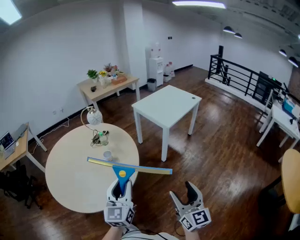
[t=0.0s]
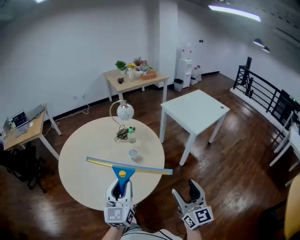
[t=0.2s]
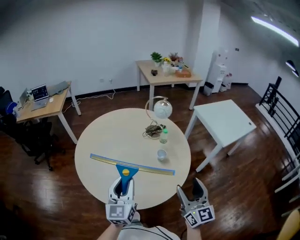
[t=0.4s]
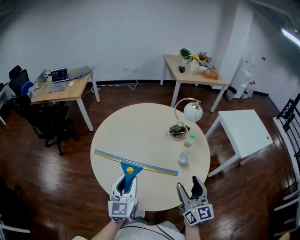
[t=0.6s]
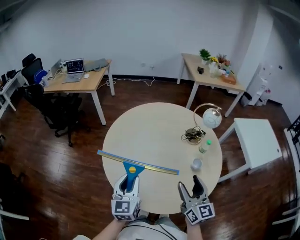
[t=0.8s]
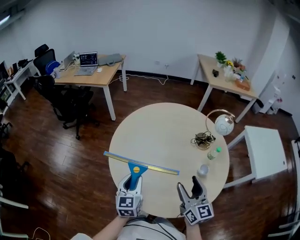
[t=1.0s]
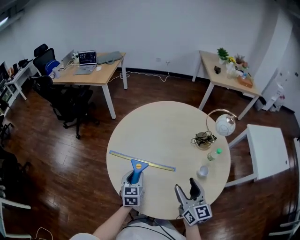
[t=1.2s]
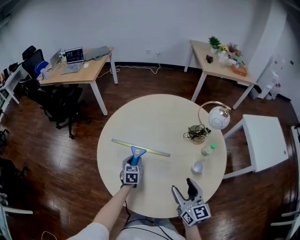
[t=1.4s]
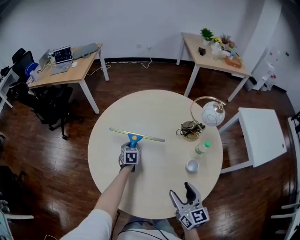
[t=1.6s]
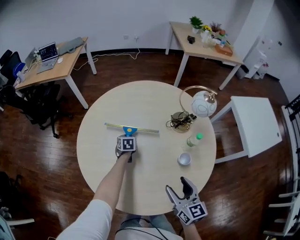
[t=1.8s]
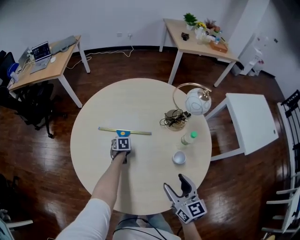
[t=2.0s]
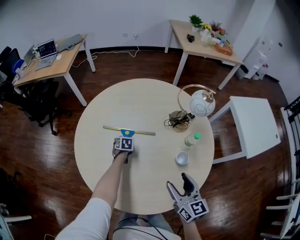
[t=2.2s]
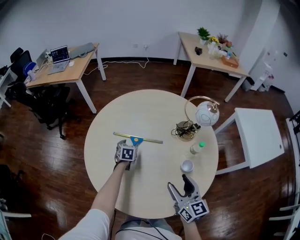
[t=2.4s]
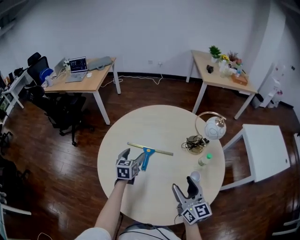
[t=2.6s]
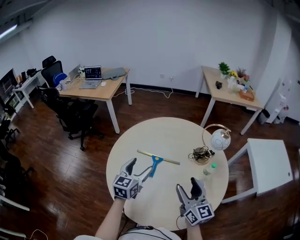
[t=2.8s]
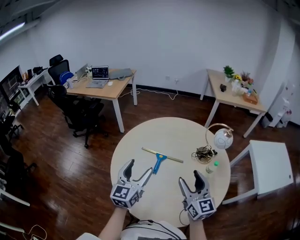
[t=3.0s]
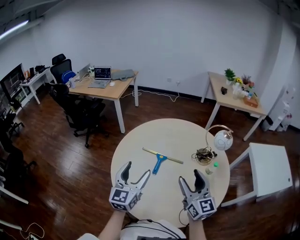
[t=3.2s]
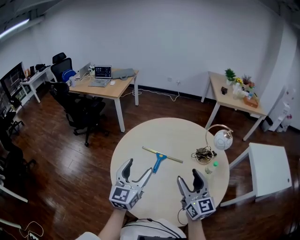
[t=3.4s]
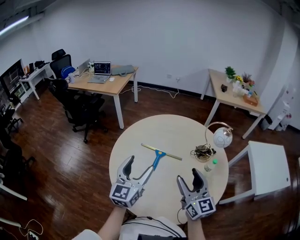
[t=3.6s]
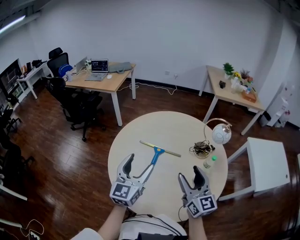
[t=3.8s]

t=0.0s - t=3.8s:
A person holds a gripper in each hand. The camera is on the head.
t=0.0s - t=1.2s: The pair of grippers is taken some 60 cm. The right gripper rotates approximately 40 degrees; the left gripper angles its fingers downward, by about 30 degrees.
t=1.2s - t=2.6s: The left gripper heads forward, covering about 15 cm, moves roughly 25 cm downward and comes back, and opens up; the right gripper shifts roughly 5 cm to the right.
t=2.6s - t=3.8s: The right gripper heads upward, covering approximately 10 cm; the left gripper shifts some 25 cm upward and backward, and tips its fingers upward by about 30 degrees.

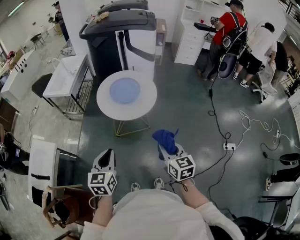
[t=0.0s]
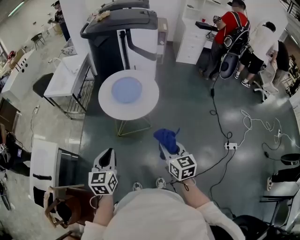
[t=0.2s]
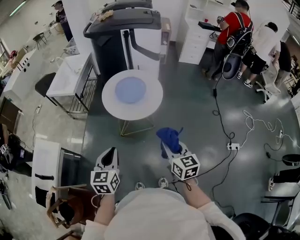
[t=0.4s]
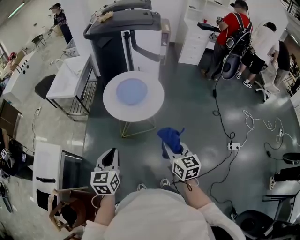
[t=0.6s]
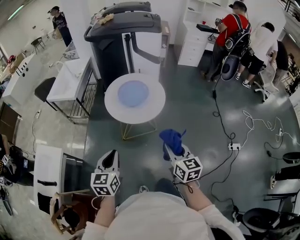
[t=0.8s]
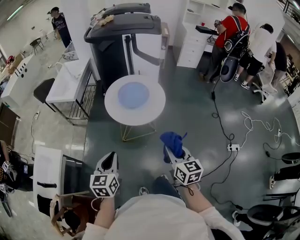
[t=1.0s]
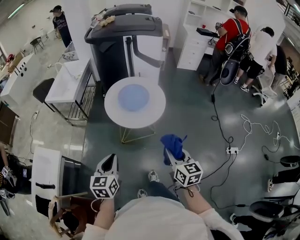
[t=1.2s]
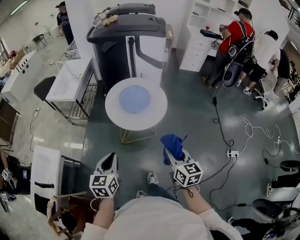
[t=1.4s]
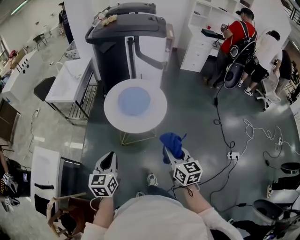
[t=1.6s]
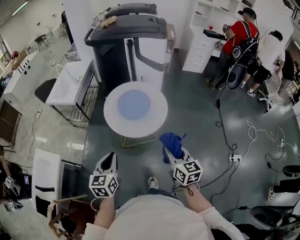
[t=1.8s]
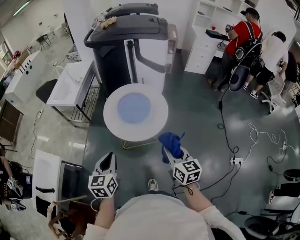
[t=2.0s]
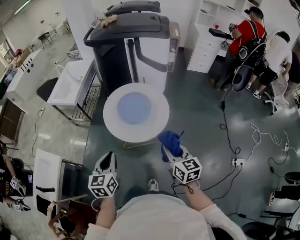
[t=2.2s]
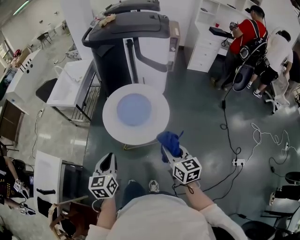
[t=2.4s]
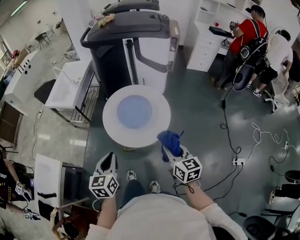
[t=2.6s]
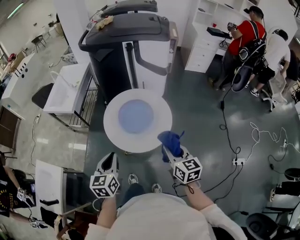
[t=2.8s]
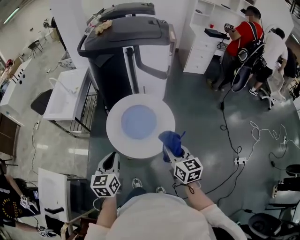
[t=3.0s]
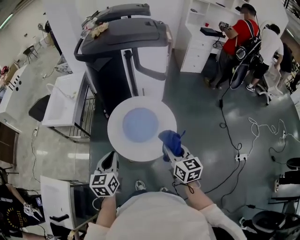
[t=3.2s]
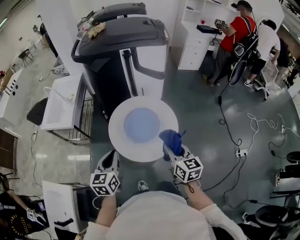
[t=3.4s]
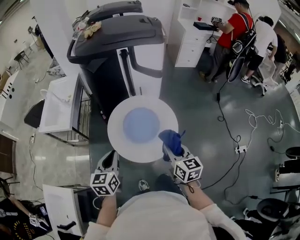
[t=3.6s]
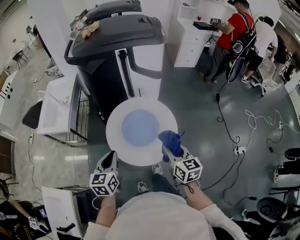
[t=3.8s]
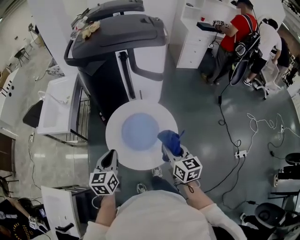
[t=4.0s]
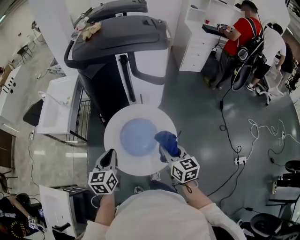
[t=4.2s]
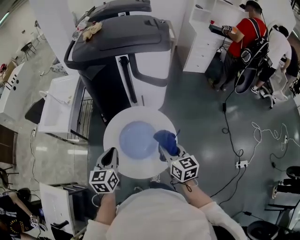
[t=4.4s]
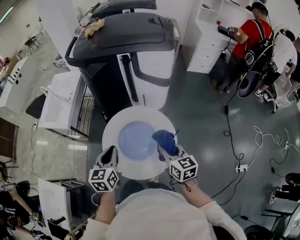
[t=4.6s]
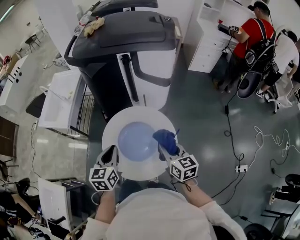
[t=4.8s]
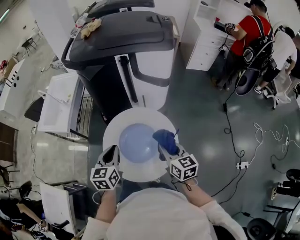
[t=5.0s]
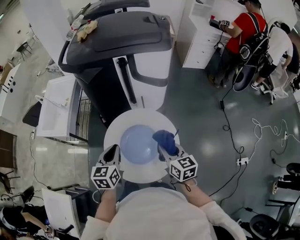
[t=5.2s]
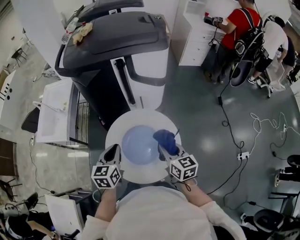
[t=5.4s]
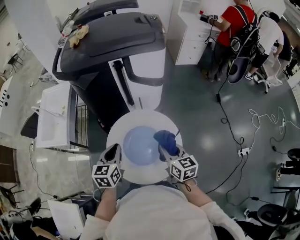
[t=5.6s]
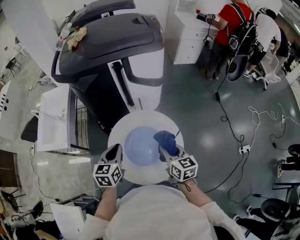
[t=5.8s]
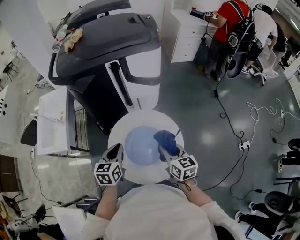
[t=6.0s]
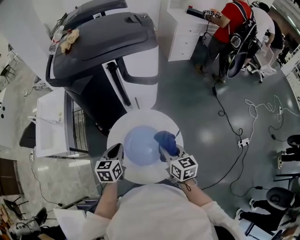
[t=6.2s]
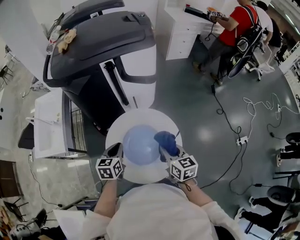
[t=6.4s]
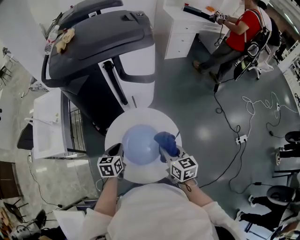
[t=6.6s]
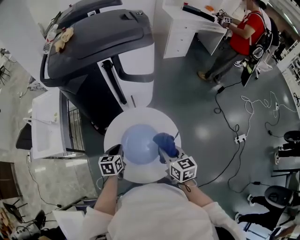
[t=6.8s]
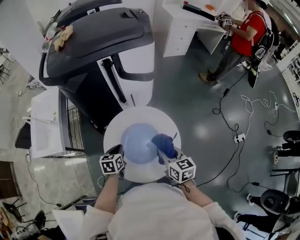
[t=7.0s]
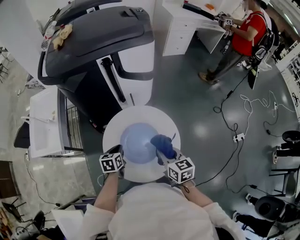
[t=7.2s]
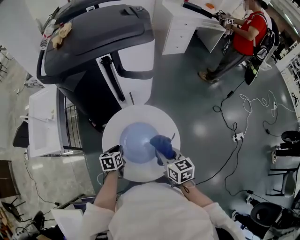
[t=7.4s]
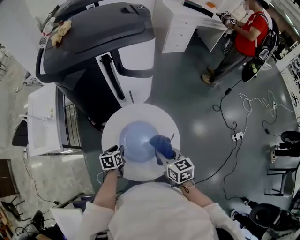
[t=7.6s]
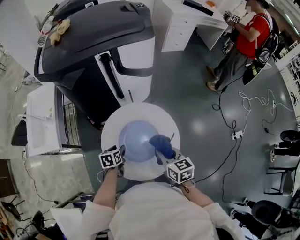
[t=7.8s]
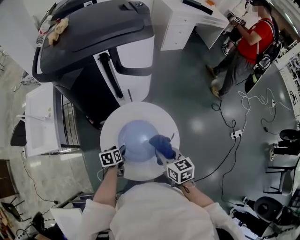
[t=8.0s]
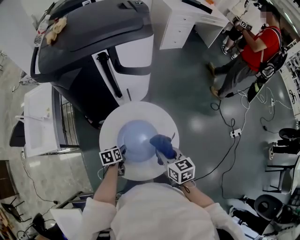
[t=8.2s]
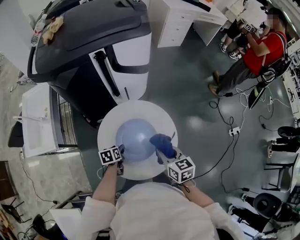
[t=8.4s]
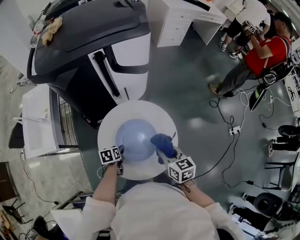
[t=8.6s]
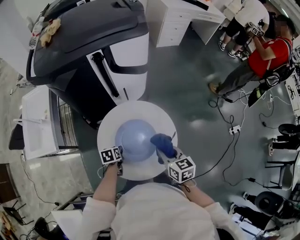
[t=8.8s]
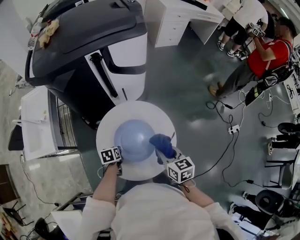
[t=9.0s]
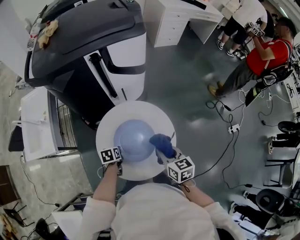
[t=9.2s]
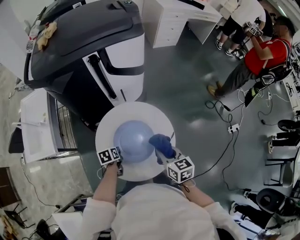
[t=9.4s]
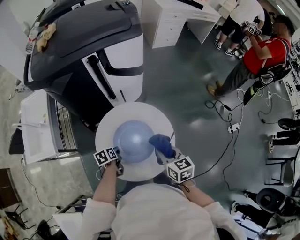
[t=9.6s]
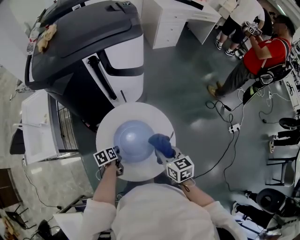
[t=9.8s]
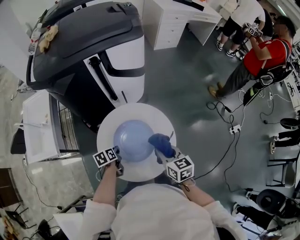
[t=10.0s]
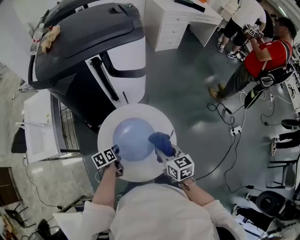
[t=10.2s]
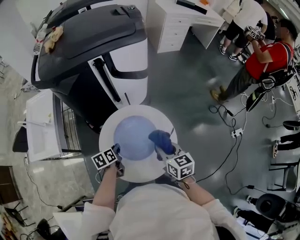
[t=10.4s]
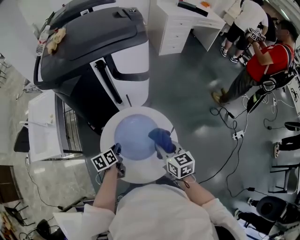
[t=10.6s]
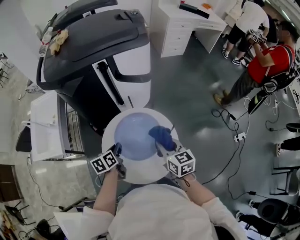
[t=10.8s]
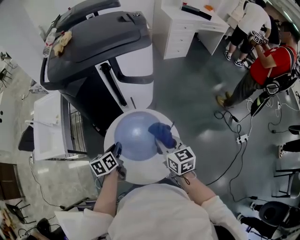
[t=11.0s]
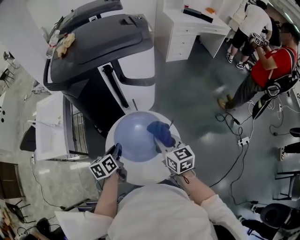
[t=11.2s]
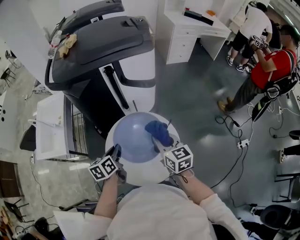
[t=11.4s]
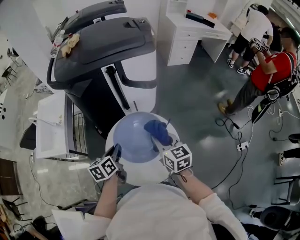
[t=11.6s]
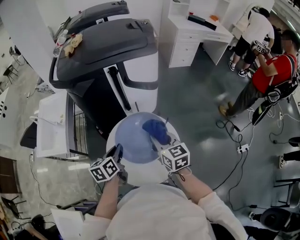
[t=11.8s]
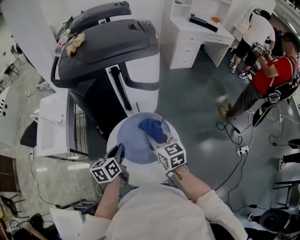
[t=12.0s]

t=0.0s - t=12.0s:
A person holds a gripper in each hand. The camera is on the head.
t=0.0s - t=1.6s: Both grippers travel together forward, some 10 cm.
t=1.6s - t=3.0s: Both grippers travel together forward, about 20 cm.
t=3.0s - t=4.4s: Both grippers travel together forward, about 15 cm.
t=4.4s - t=6.0s: The right gripper moves roughly 5 cm. The left gripper is displaced forward by some 10 cm.
t=6.0s - t=7.6s: The left gripper heads downward, covering some 20 cm, and swivels about 20 degrees.
t=7.6s - t=9.0s: The left gripper heads downward, covering about 5 cm.
t=9.0s - t=10.4s: The left gripper travels upward by about 10 cm, turns by roughly 20 degrees, and closes up.
t=10.4s - t=12.0s: The left gripper heads upward, covering roughly 20 cm, and swivels approximately 20 degrees; the right gripper shifts some 10 cm upward, forward and to the left.

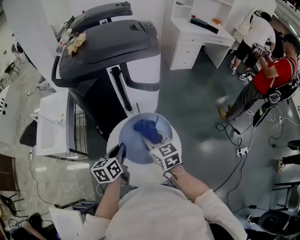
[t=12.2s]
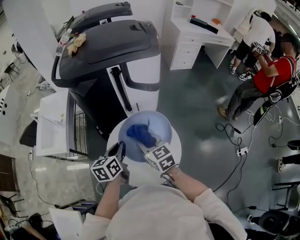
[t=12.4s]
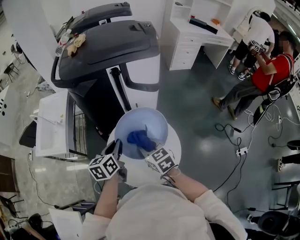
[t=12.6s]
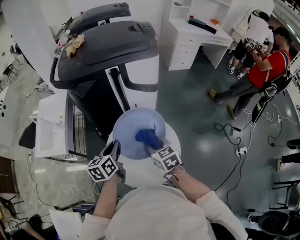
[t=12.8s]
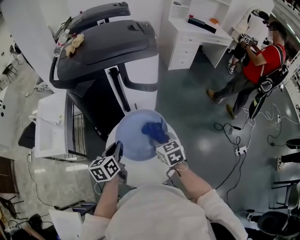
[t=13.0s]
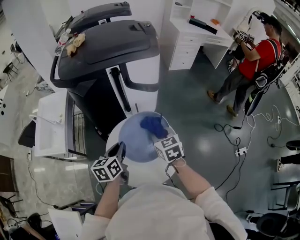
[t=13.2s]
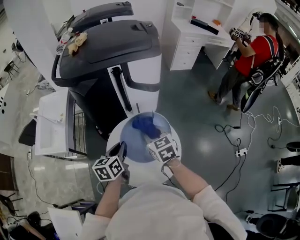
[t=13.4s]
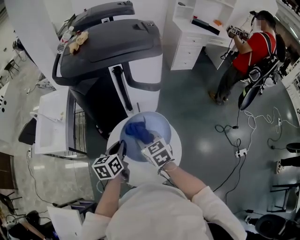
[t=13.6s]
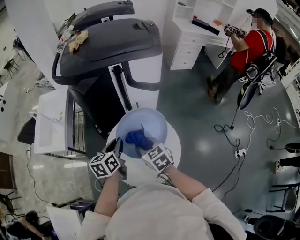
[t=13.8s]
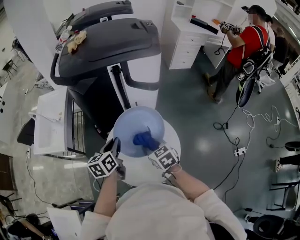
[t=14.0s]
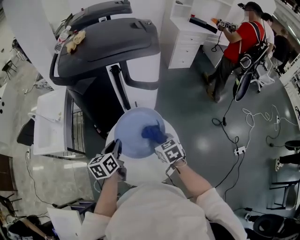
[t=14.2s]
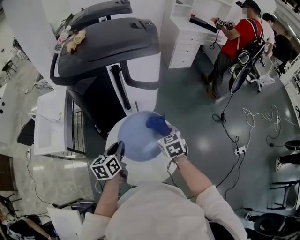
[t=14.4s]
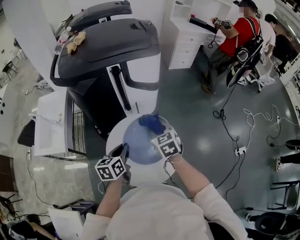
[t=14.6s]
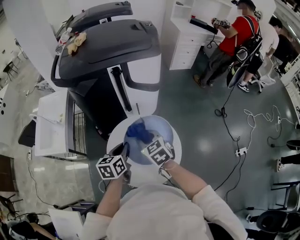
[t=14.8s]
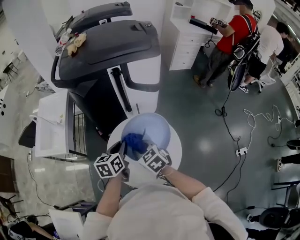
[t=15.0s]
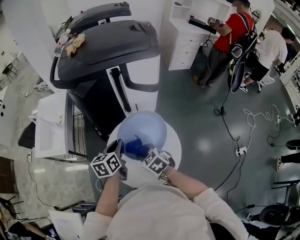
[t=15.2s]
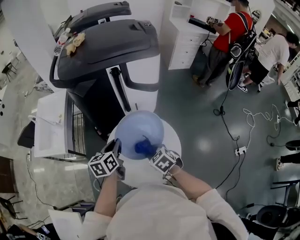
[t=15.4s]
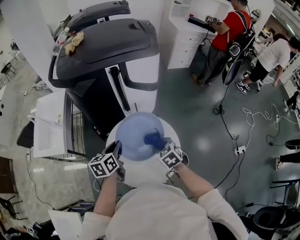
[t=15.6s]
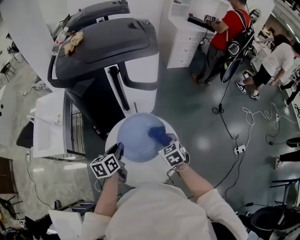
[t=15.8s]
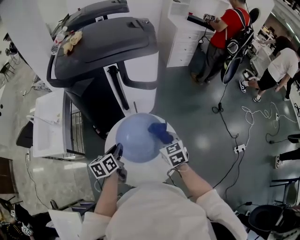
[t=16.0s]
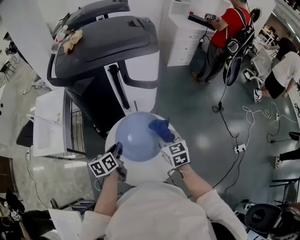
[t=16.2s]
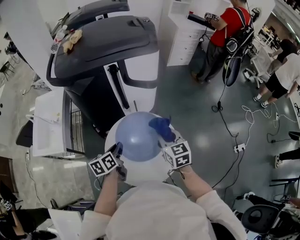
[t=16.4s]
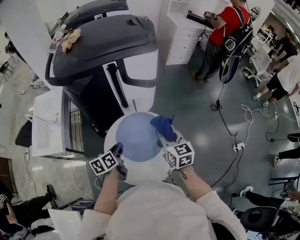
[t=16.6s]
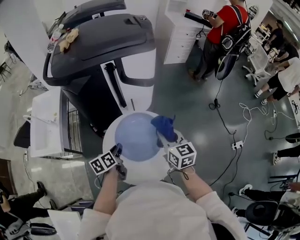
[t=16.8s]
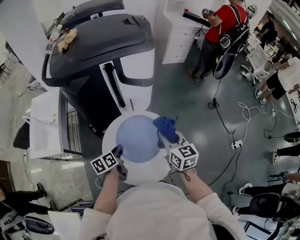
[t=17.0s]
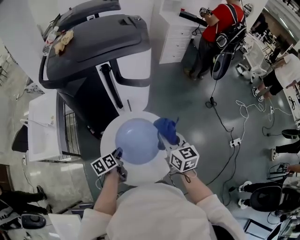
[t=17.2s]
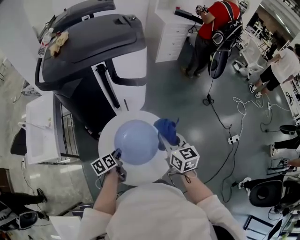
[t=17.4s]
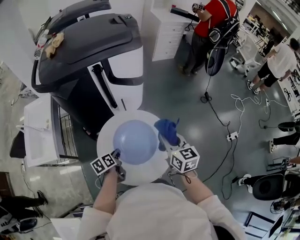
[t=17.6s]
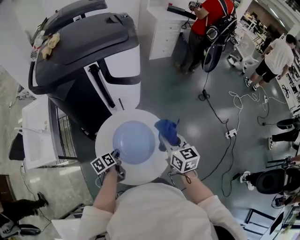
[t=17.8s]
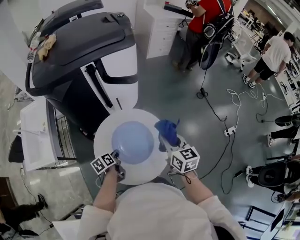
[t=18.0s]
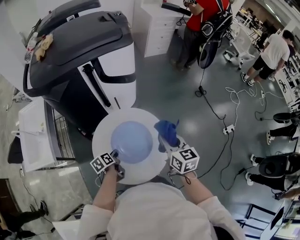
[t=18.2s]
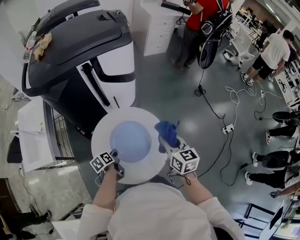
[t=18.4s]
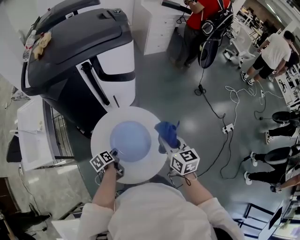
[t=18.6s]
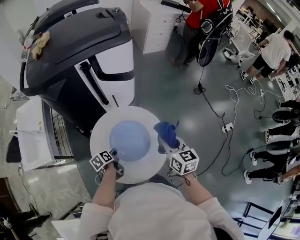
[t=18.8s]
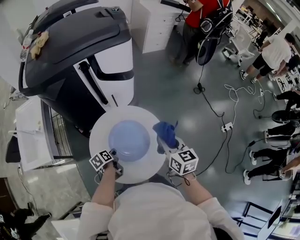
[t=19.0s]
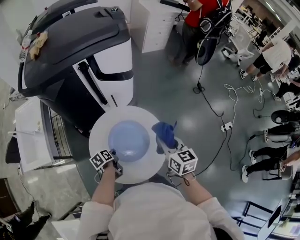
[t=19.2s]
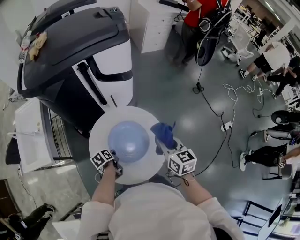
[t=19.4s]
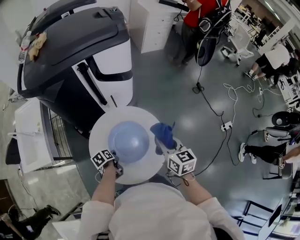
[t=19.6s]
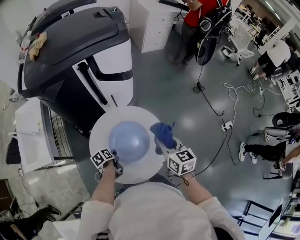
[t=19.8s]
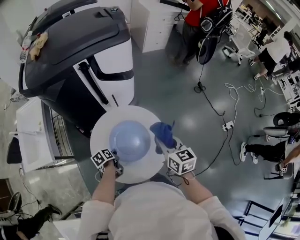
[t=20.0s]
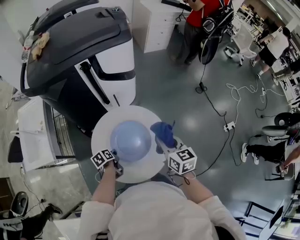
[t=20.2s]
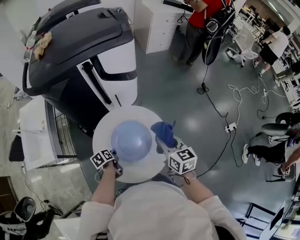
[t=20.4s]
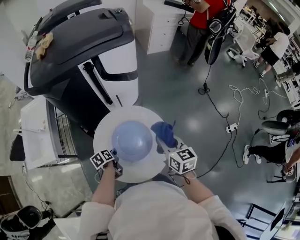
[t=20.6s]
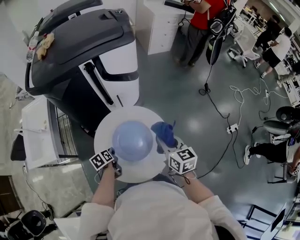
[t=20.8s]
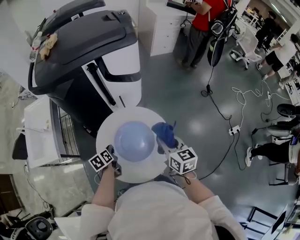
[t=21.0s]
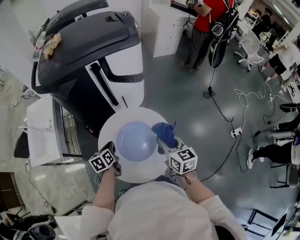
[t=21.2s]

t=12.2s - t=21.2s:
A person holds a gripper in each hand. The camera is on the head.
t=12.2s - t=13.8s: The right gripper travels downward by roughly 5 cm.
t=13.8s - t=15.2s: The right gripper moves about 10 cm to the right and comes back.
t=15.2s - t=16.6s: The right gripper shifts approximately 15 cm to the right, upward and forward, and turns by about 40 degrees, while the left gripper travels downward by about 5 cm.
t=16.6s - t=18.2s: The right gripper shifts about 5 cm to the right. The left gripper shifts roughly 15 cm downward.
t=18.2s - t=19.8s: The left gripper goes roughly 5 cm downward.
t=19.8s - t=21.2s: The left gripper shifts some 15 cm upward, and turns by approximately 30 degrees.
